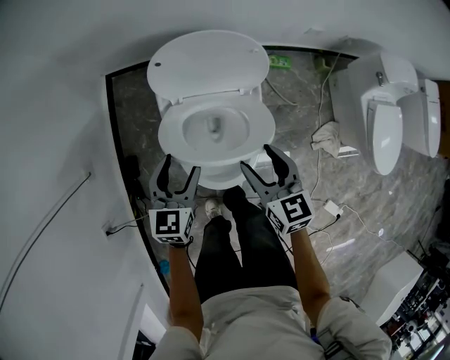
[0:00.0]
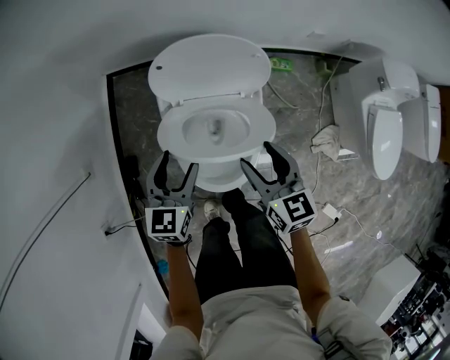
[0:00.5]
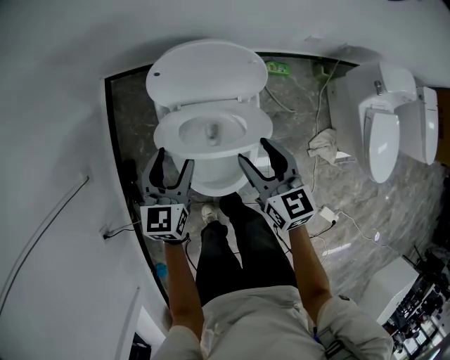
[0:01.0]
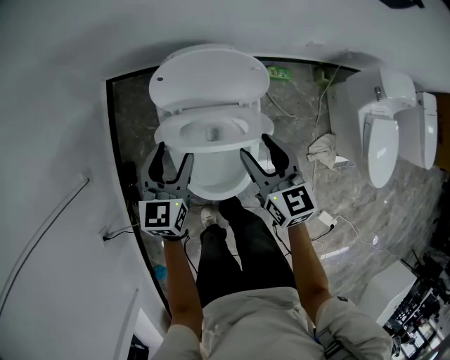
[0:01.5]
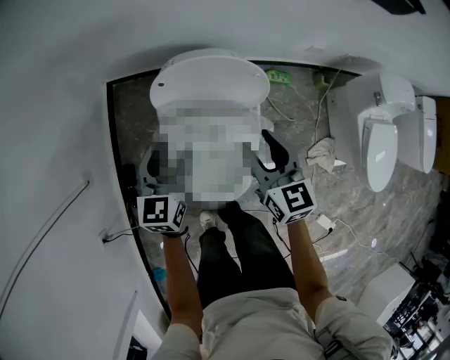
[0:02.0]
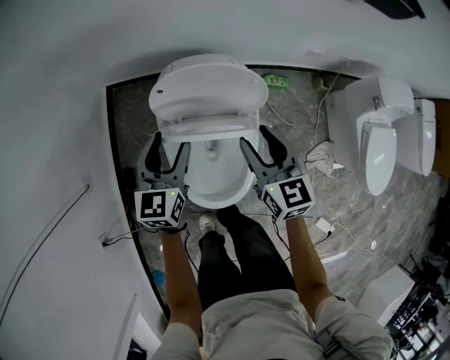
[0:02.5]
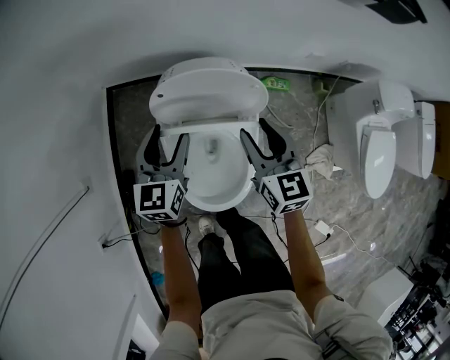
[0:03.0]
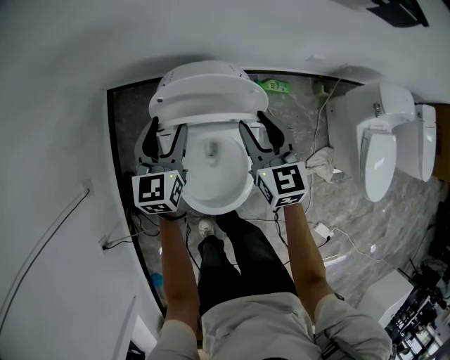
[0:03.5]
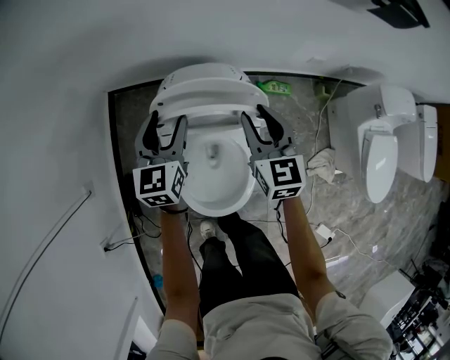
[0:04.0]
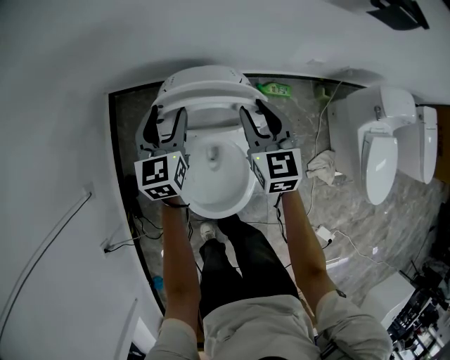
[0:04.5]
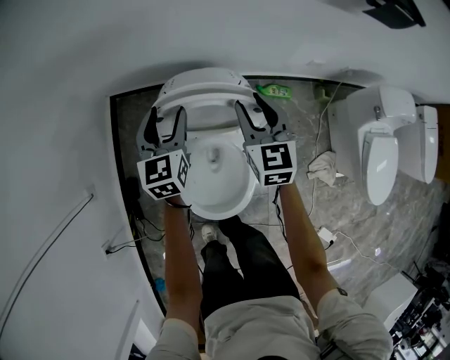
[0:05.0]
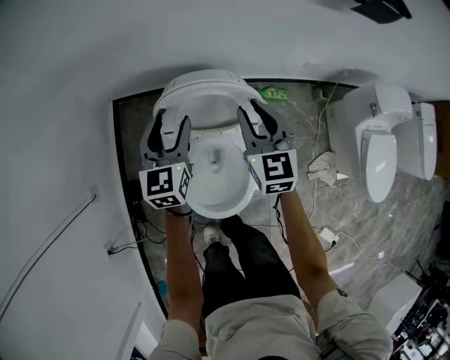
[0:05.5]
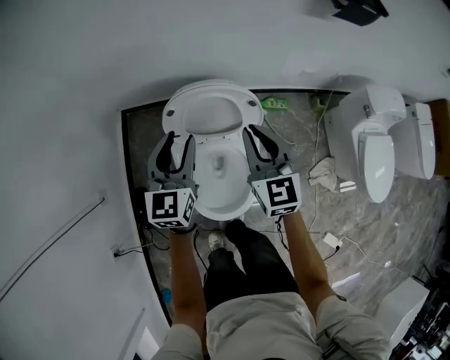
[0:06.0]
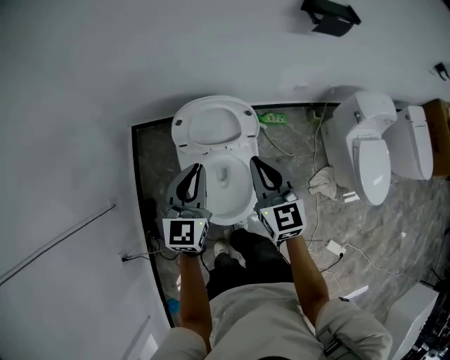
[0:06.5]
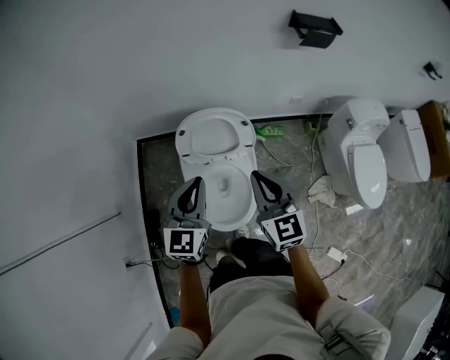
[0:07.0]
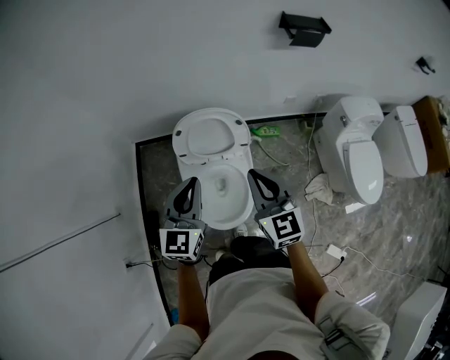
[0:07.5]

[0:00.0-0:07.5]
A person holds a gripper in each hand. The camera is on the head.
0:00.0 to 0:02.0: The grippers both shift forward by roughly 10 cm.
0:02.0 to 0:04.0: The grippers both shift forward by some 10 cm.
0:04.0 to 0:05.5: The grippers stay close to where they were, moving slightly.
0:05.5 to 0:07.5: The two grippers go about 30 cm backward and upward. The left gripper closes up.

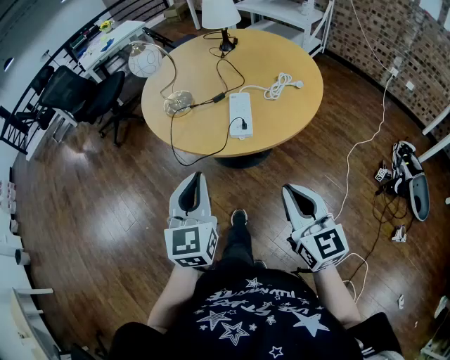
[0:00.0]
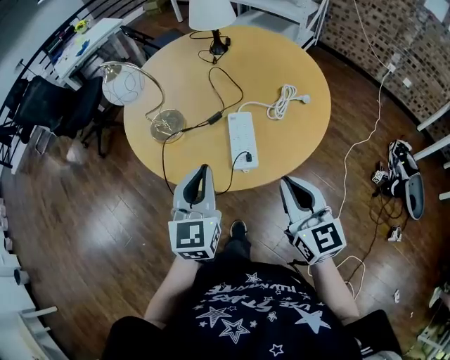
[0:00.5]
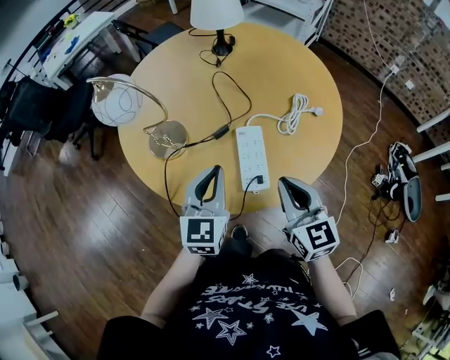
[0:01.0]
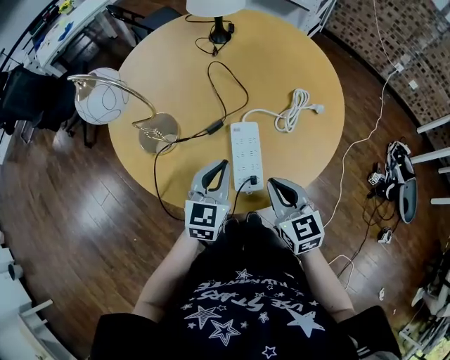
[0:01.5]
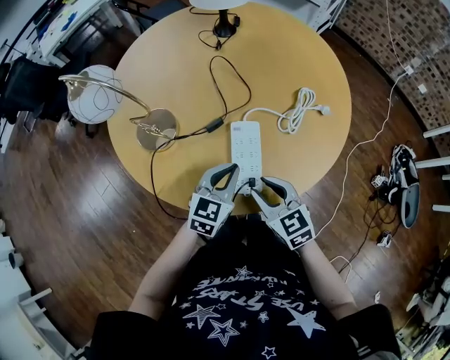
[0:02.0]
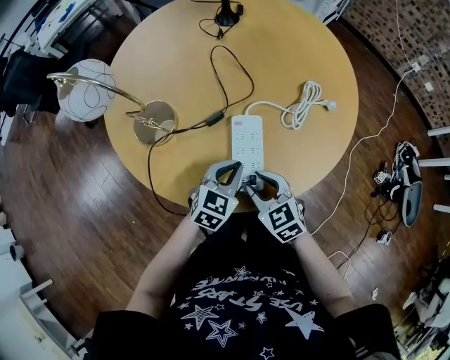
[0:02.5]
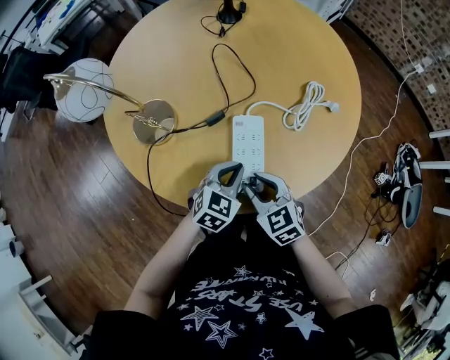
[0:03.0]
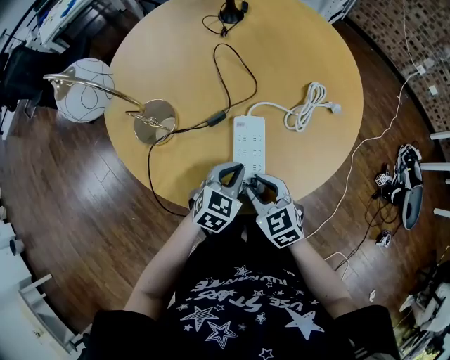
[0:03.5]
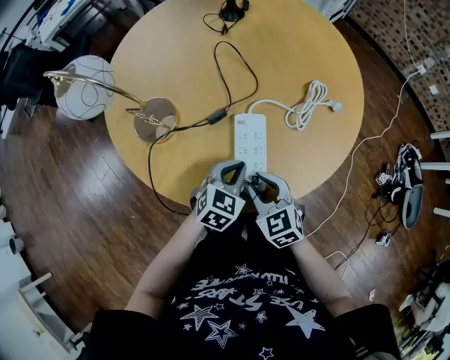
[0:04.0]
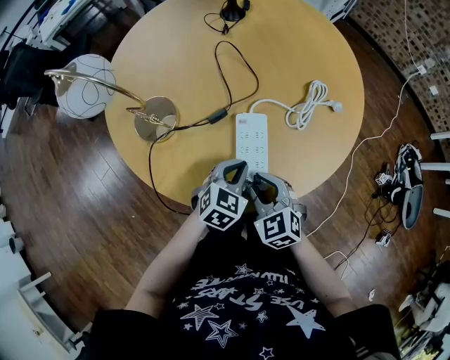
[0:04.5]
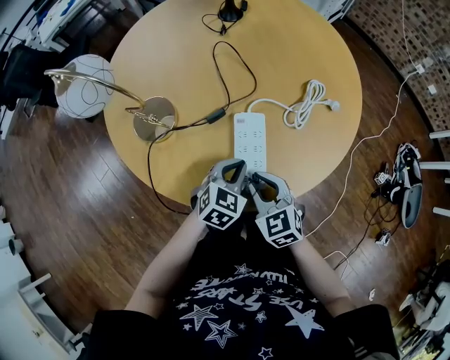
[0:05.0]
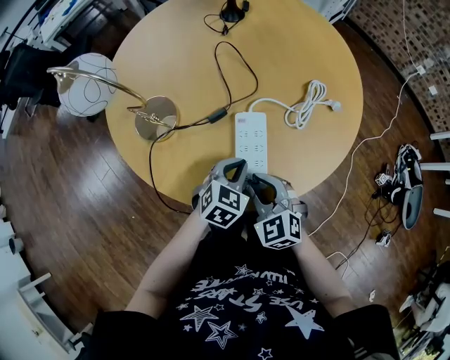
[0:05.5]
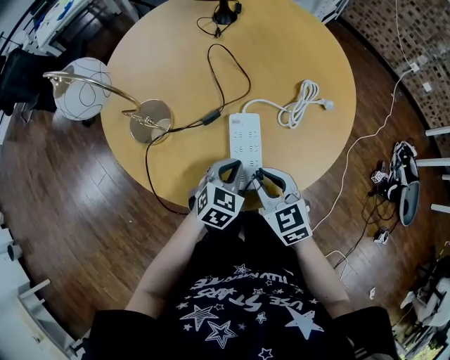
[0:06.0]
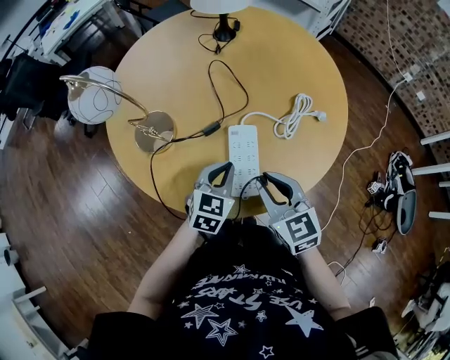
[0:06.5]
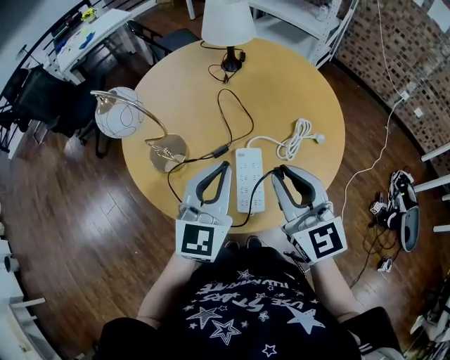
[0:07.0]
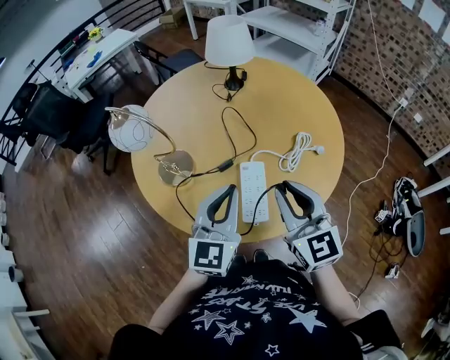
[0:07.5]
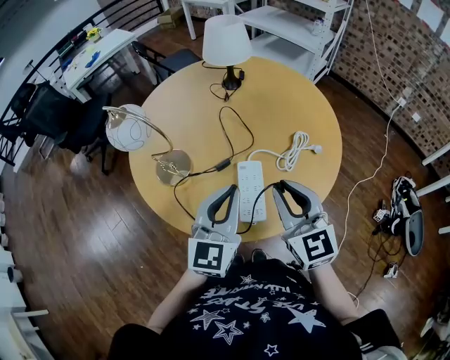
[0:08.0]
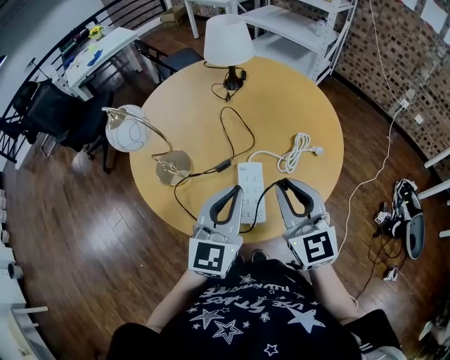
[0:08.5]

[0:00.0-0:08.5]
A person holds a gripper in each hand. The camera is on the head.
0:00.0 to 0:02.0: The two grippers go about 35 cm forward and downward. The left gripper swivels approximately 30 degrees. The right gripper changes its angle by some 30 degrees, and opens.
0:02.0 to 0:04.0: The left gripper ends up roughly 5 cm from where it was.
0:04.0 to 0:06.5: The right gripper shifts some 10 cm upward.
0:06.5 to 0:08.5: The left gripper moves upward, approximately 20 cm, and swivels approximately 30 degrees. Meanwhile the right gripper goes roughly 15 cm upward, and swivels some 20 degrees.

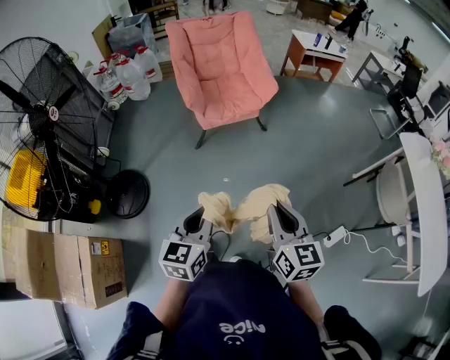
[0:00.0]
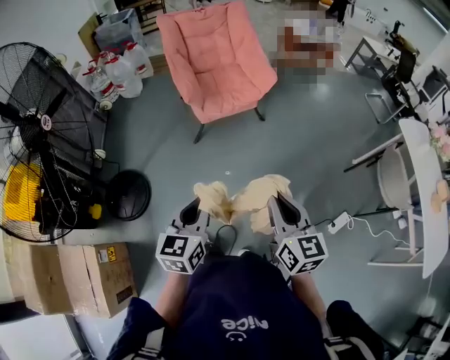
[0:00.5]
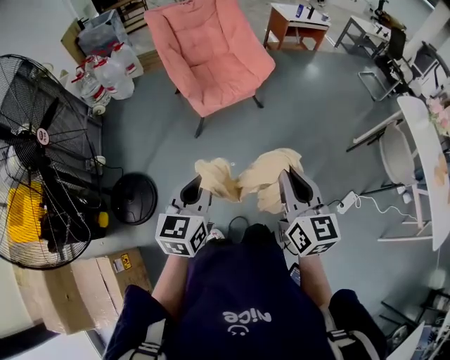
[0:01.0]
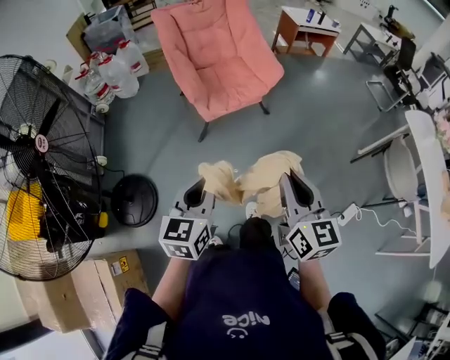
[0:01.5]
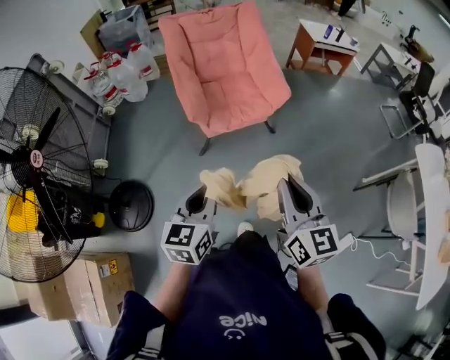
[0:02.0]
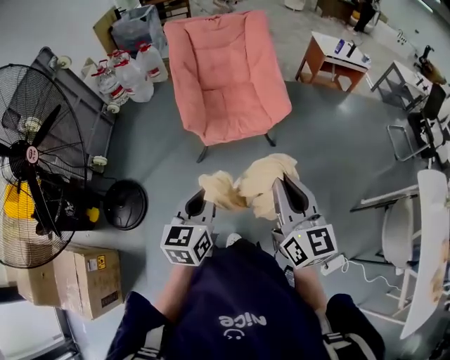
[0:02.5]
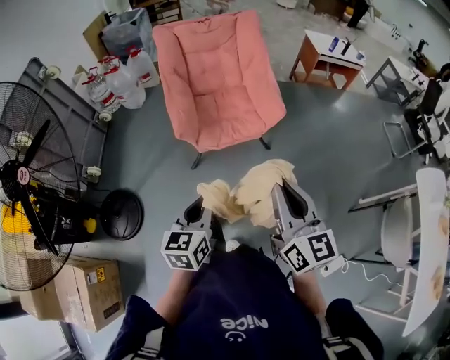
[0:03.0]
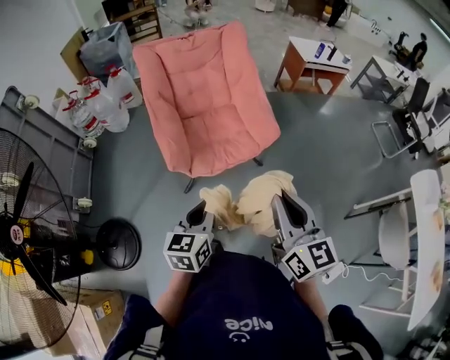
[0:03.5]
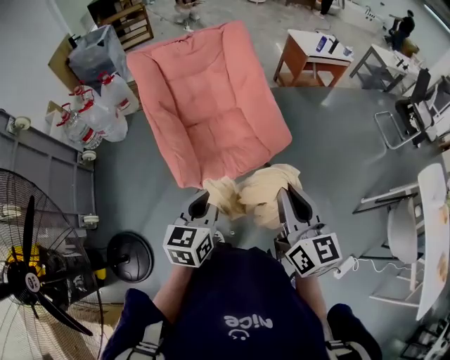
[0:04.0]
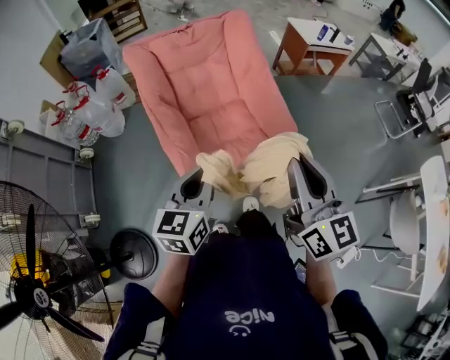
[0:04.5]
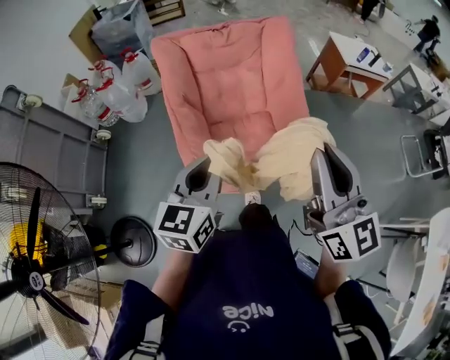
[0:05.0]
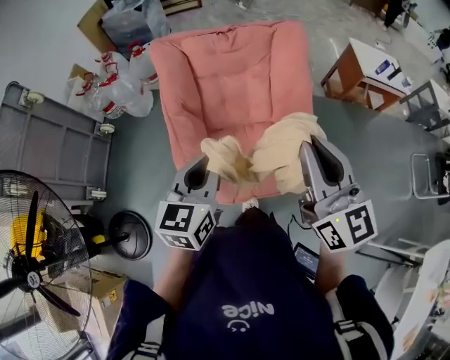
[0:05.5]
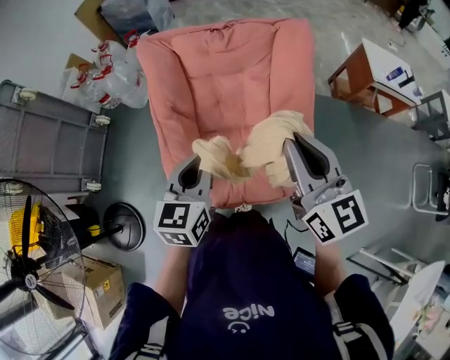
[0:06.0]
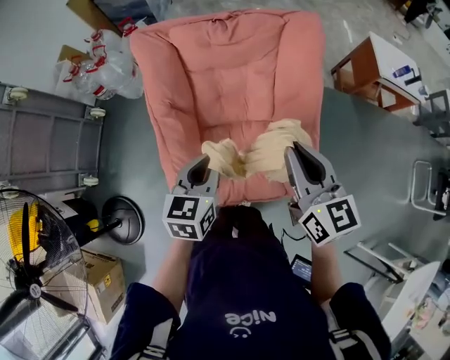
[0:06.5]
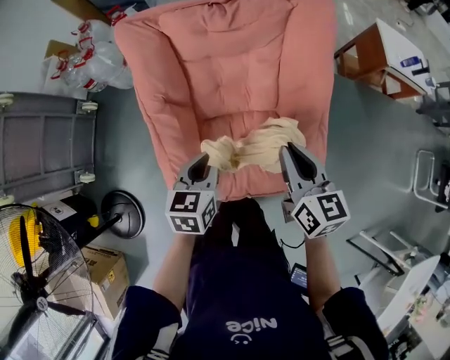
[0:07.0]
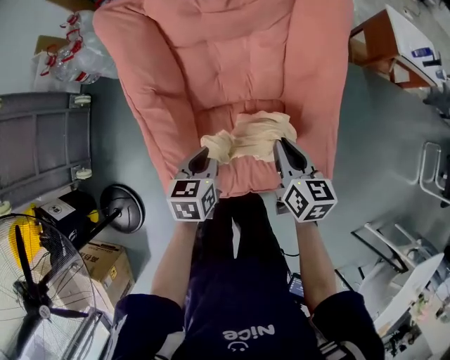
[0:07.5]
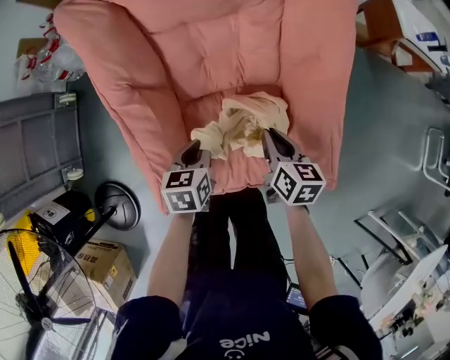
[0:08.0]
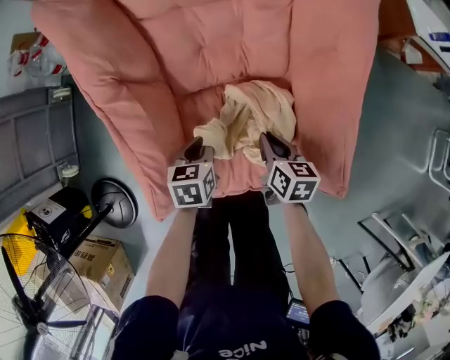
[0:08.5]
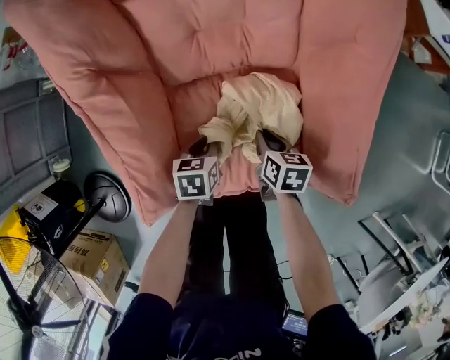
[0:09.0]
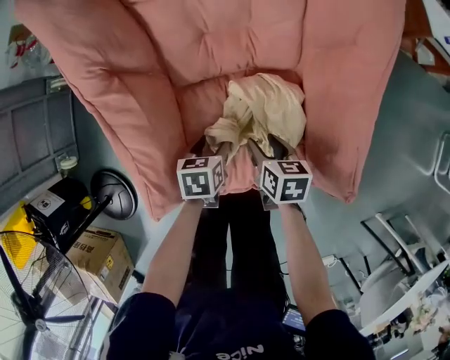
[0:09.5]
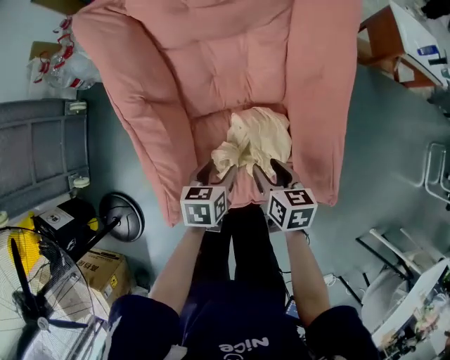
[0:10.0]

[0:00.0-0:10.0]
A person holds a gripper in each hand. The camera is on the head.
0:00.0 to 0:02.0: Both grippers move forward, about 30 cm.
0:02.0 to 0:04.0: Both grippers are carried forward, approximately 40 cm.
0:04.0 to 0:06.0: Both grippers are carried some 50 cm. The left gripper swivels roughly 20 degrees; the right gripper rotates some 30 degrees.
0:06.0 to 0:08.0: Both grippers move downward, roughly 40 cm. The right gripper tips its fingers downward by roughly 30 degrees. Meanwhile the left gripper rotates approximately 30 degrees.
0:08.0 to 0:10.0: The left gripper reaches some 20 cm downward, then returns, and opens up. The right gripper travels downward and back again, approximately 20 cm each way, and opens.

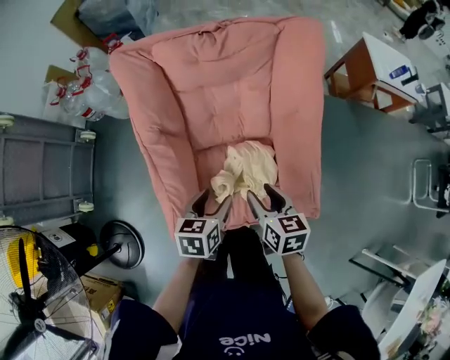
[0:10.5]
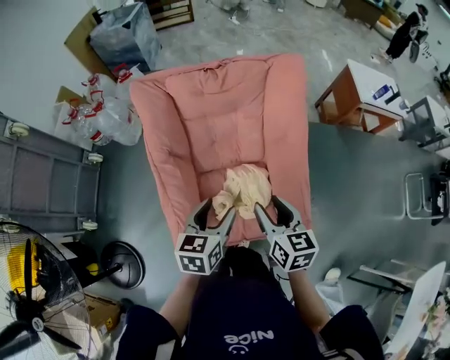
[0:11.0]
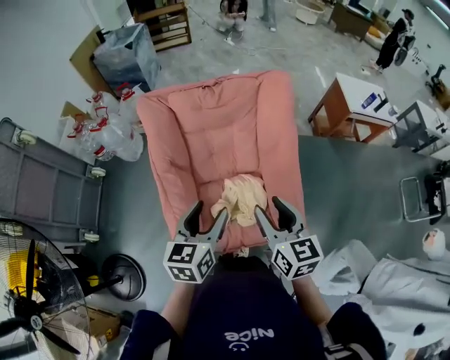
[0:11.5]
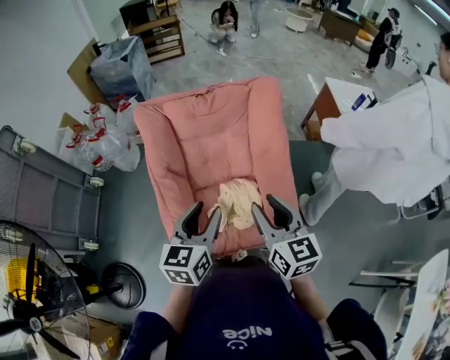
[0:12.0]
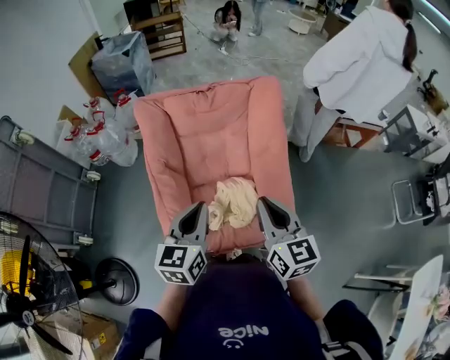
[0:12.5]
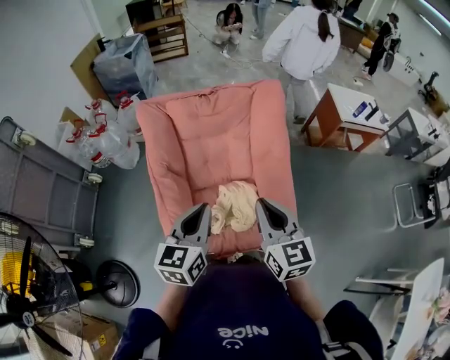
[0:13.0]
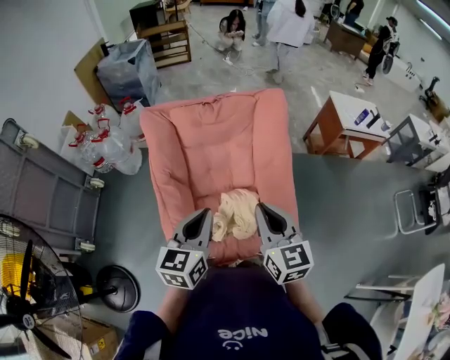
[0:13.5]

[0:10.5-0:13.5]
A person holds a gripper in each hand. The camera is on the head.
0:10.5 to 0:12.0: Both grippers move upward, roughly 30 cm. The right gripper swivels roughly 30 degrees. The left gripper rotates roughly 30 degrees.
0:12.0 to 0:13.5: The right gripper closes, while the left gripper closes.
